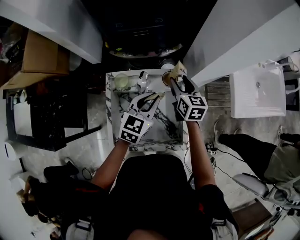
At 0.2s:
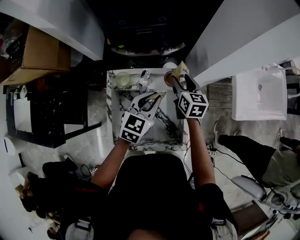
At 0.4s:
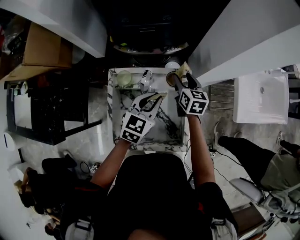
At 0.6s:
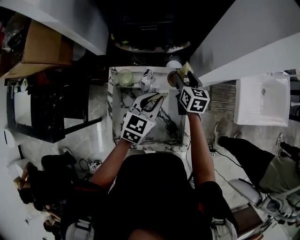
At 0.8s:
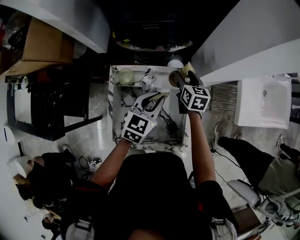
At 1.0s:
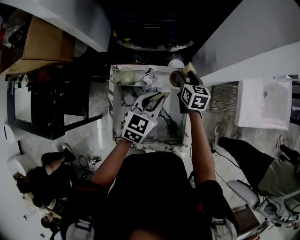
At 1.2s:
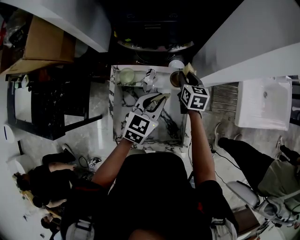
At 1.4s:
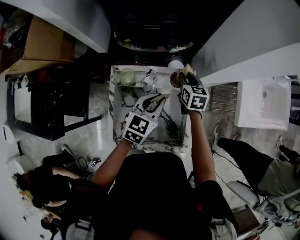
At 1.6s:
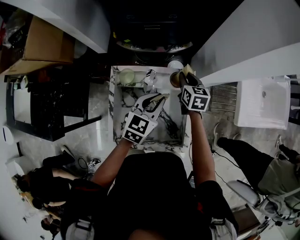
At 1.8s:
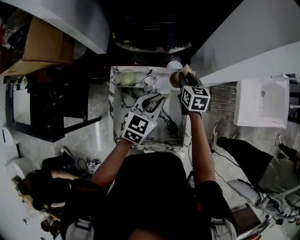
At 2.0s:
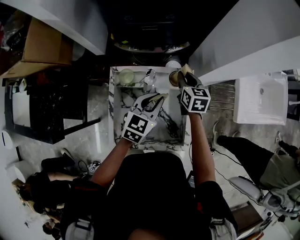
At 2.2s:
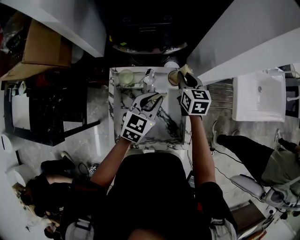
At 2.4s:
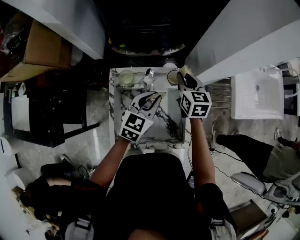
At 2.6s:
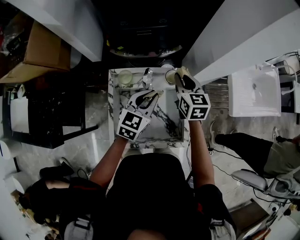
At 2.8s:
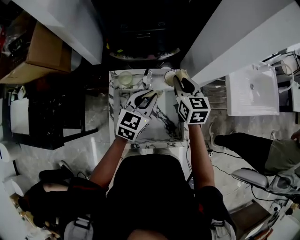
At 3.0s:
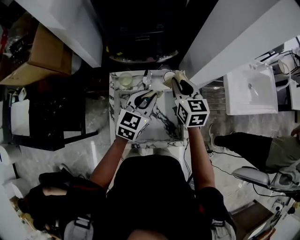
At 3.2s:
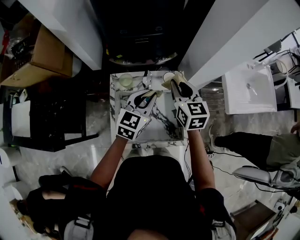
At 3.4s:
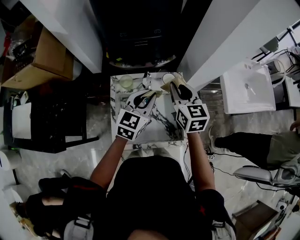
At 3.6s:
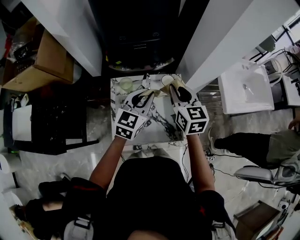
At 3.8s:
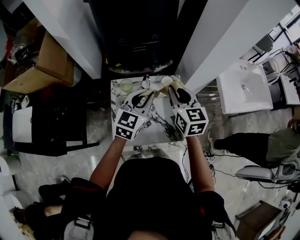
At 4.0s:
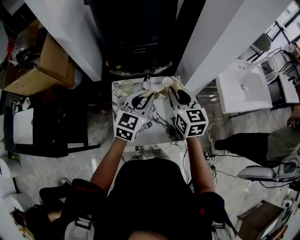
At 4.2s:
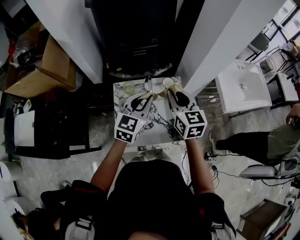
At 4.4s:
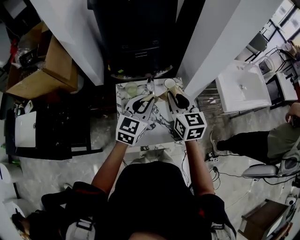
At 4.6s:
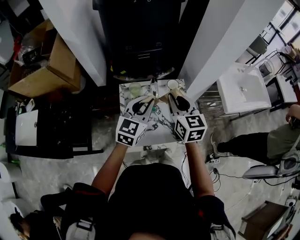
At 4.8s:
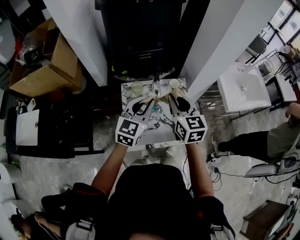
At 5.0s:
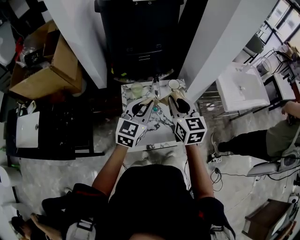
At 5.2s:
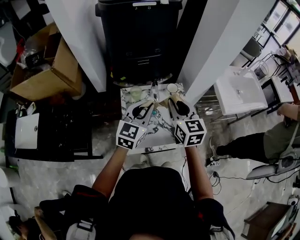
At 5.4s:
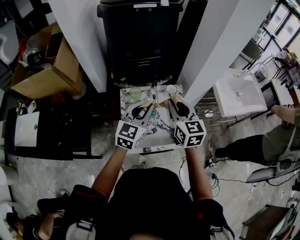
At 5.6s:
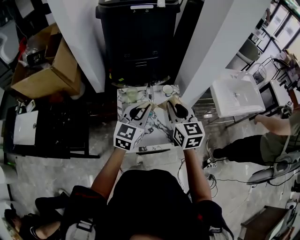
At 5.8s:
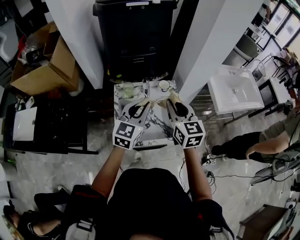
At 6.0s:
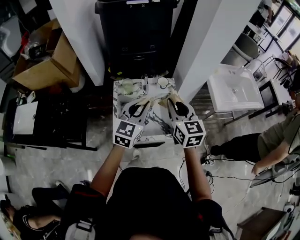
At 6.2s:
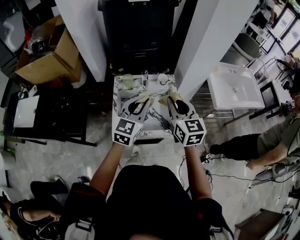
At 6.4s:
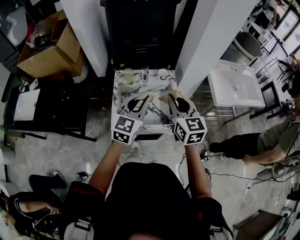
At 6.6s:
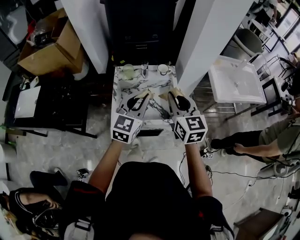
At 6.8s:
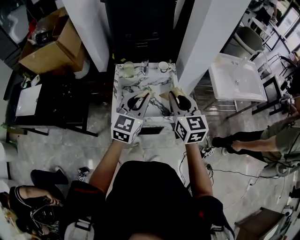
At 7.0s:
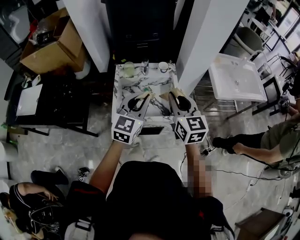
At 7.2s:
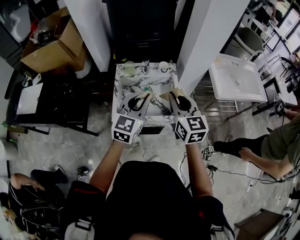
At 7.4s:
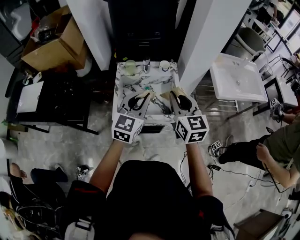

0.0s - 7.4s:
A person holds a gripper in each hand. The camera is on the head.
0.0s - 1.4s: The right gripper travels downward by roughly 5 cm, and closes up.
1.4s - 3.0s: The right gripper is displaced upward and backward by approximately 20 cm, while the left gripper is displaced upward by roughly 5 cm.
3.0s - 4.4s: The right gripper moves backward and upward, about 10 cm. Meanwhile the left gripper shifts some 10 cm upward and backward.
4.4s - 6.0s: The left gripper heads backward, covering some 10 cm. Meanwhile the right gripper moves backward and to the right, some 10 cm.
6.0s - 7.4s: Both grippers travel together backward, some 10 cm.

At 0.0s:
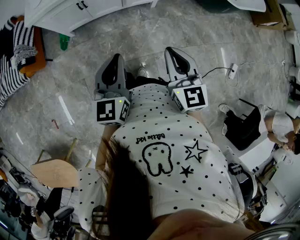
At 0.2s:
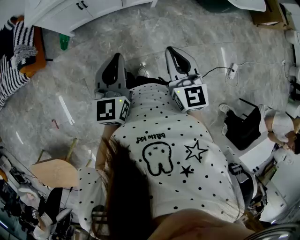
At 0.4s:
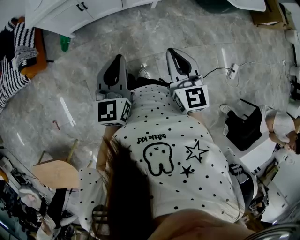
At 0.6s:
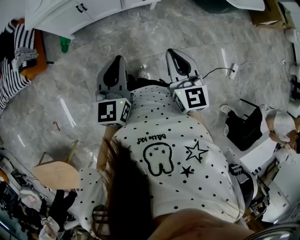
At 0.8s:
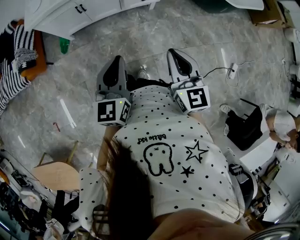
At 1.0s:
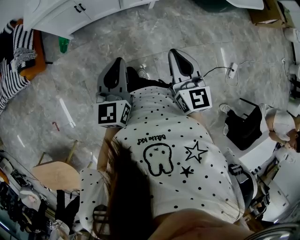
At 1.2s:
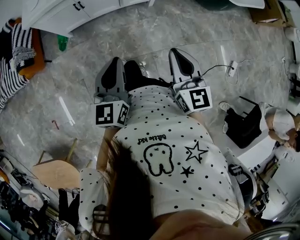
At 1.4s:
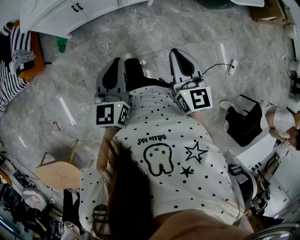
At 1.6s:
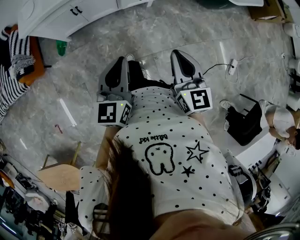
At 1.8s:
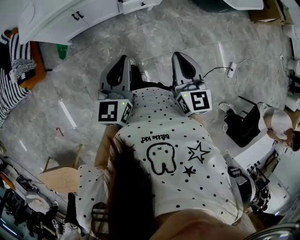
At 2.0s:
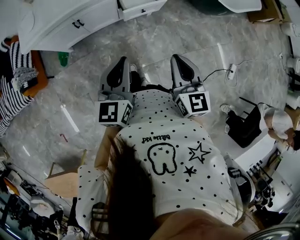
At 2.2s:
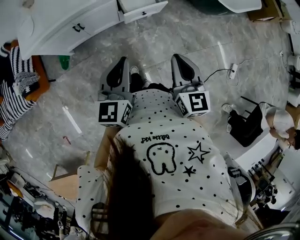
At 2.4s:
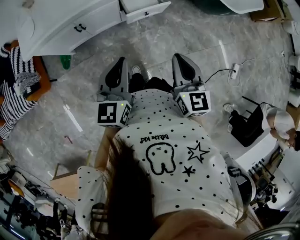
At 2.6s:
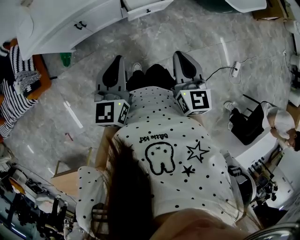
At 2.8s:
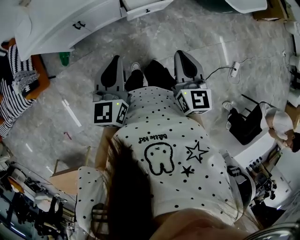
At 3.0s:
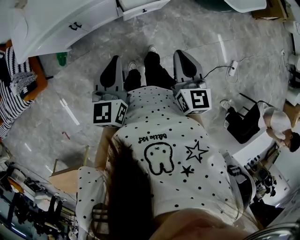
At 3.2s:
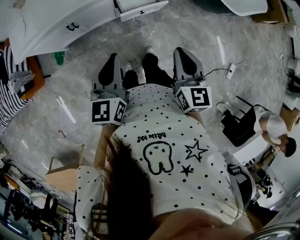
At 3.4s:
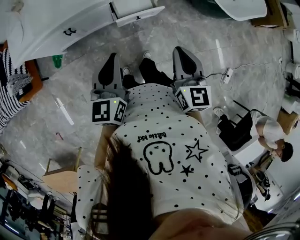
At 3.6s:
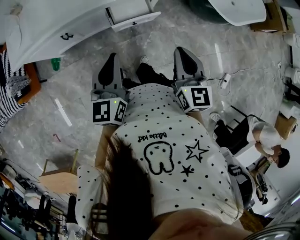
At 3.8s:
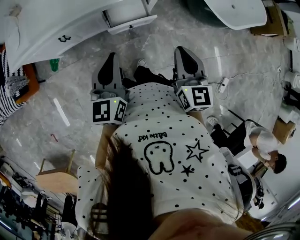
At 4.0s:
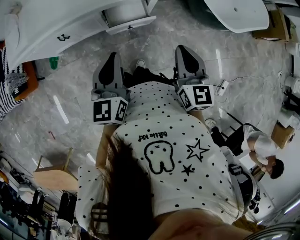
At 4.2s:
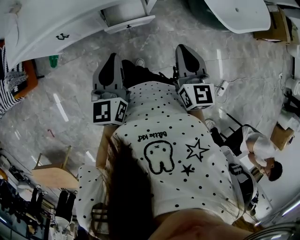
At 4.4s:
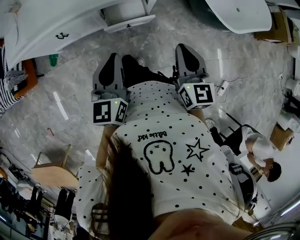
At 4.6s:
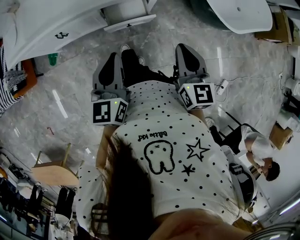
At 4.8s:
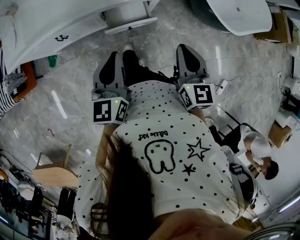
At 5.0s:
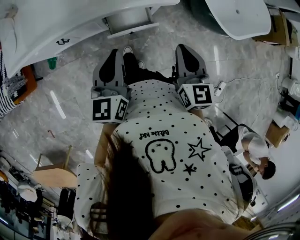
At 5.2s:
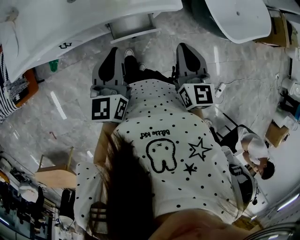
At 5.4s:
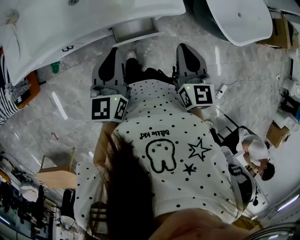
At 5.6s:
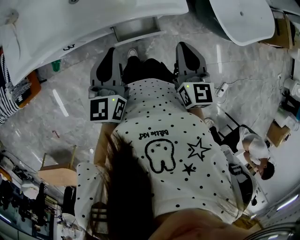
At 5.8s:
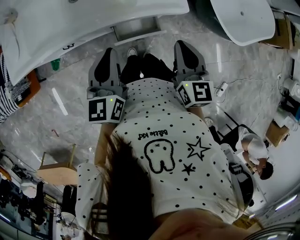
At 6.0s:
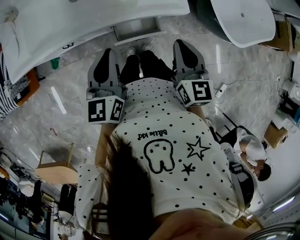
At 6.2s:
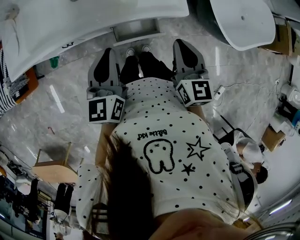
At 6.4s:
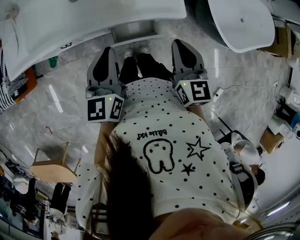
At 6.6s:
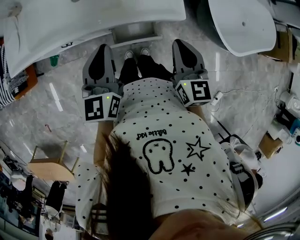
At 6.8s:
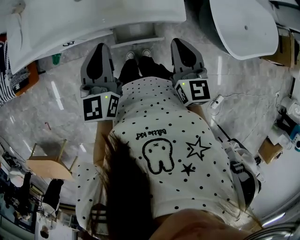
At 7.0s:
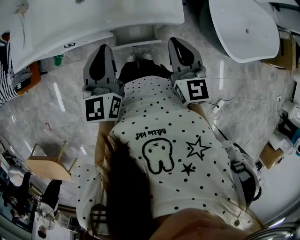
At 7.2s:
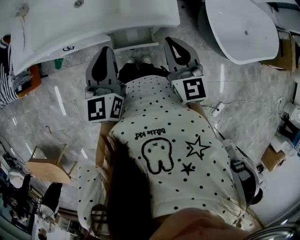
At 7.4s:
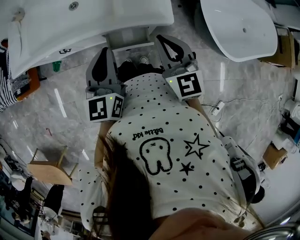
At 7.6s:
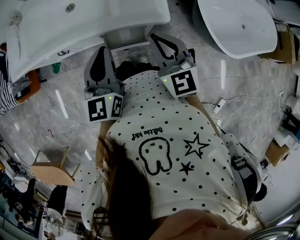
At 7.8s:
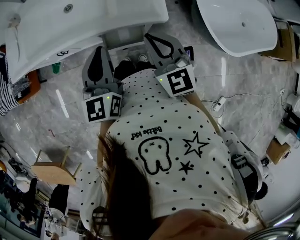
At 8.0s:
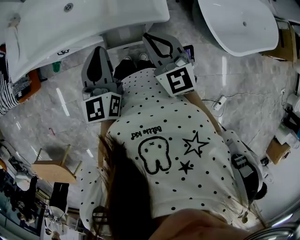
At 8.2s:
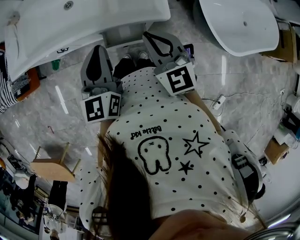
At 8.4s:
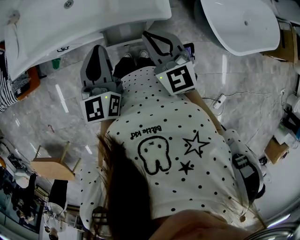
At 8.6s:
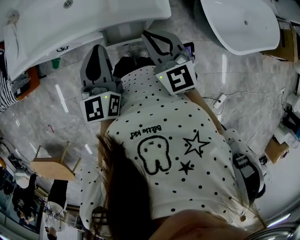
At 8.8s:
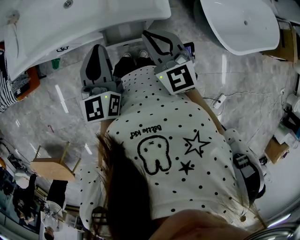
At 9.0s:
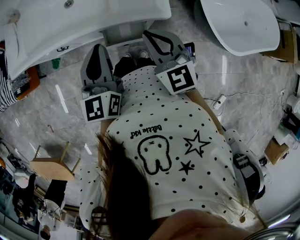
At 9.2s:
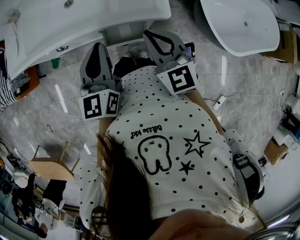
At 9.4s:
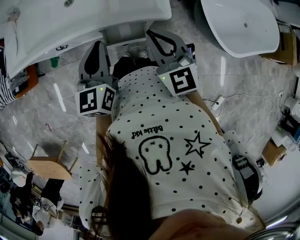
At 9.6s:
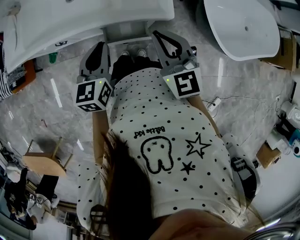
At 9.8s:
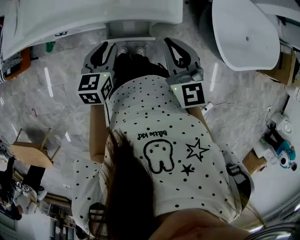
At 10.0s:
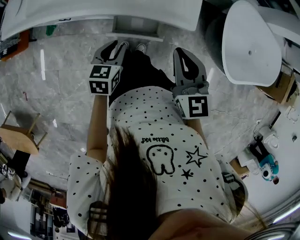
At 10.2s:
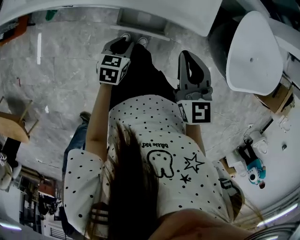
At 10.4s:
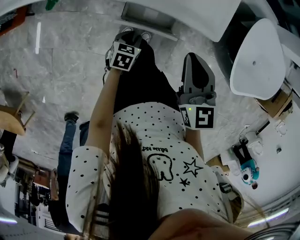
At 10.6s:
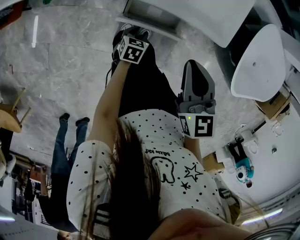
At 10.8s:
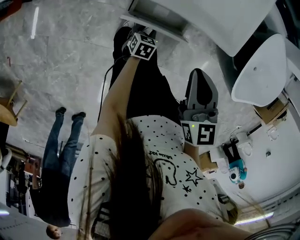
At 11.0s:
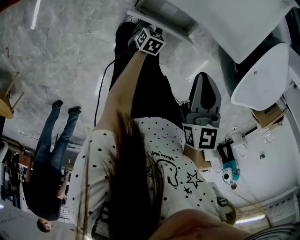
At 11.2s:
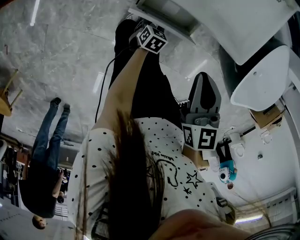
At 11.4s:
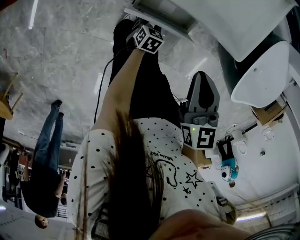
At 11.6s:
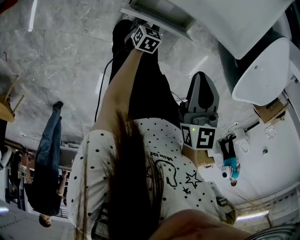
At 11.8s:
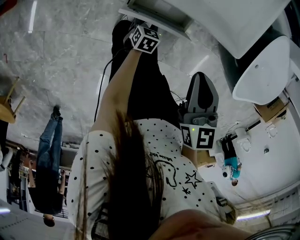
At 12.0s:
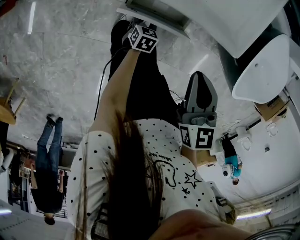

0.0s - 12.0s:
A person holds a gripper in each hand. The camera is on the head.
0.0s - 1.6s: There are only small adjustments of the grippers.
1.6s - 3.0s: Both grippers travel together forward, approximately 15 cm.
3.0s - 4.4s: The two grippers go approximately 20 cm to the right and forward.
4.4s - 6.0s: The grippers both shift forward and to the left by roughly 15 cm.
6.0s - 7.6s: The right gripper changes its angle by about 30 degrees. Meanwhile the left gripper shifts about 10 cm to the right.
7.6s - 9.0s: The grippers make only small movements.
9.0s - 10.4s: The right gripper goes roughly 10 cm downward; the left gripper shifts about 40 cm downward, angles its fingers downward, by roughly 50 degrees, and opens up.
10.4s - 12.0s: The left gripper shifts about 15 cm downward. Meanwhile the right gripper goes about 5 cm downward.

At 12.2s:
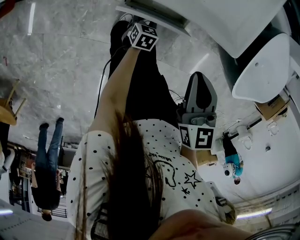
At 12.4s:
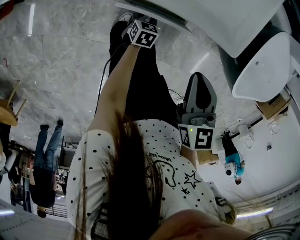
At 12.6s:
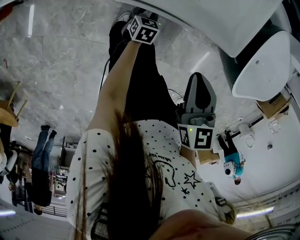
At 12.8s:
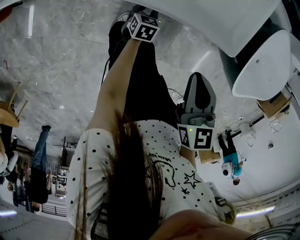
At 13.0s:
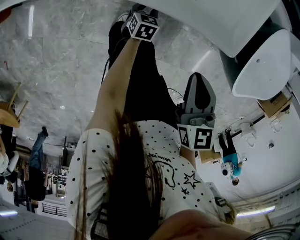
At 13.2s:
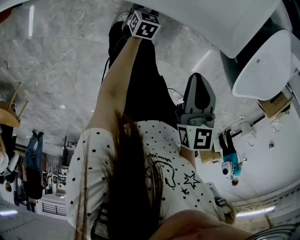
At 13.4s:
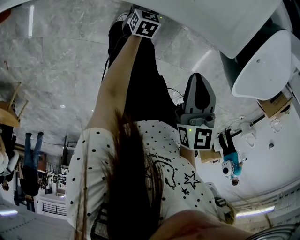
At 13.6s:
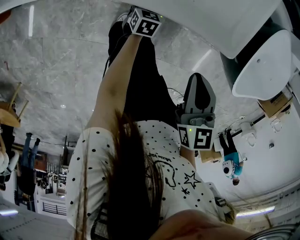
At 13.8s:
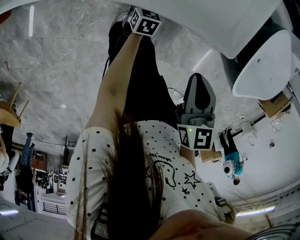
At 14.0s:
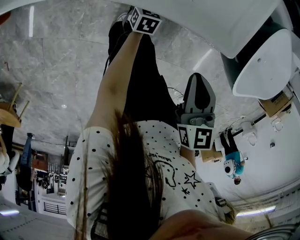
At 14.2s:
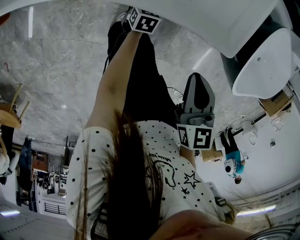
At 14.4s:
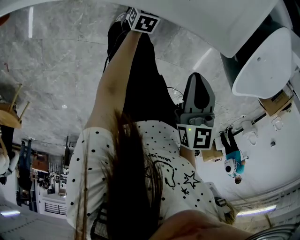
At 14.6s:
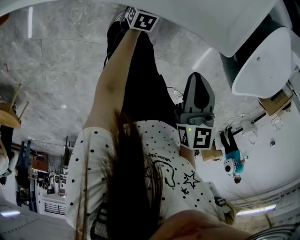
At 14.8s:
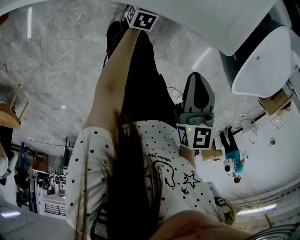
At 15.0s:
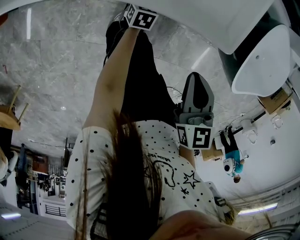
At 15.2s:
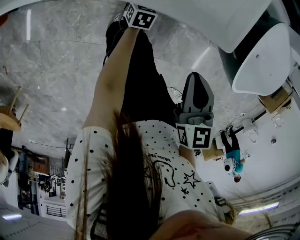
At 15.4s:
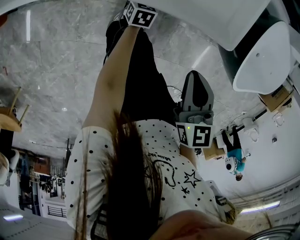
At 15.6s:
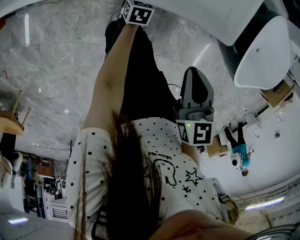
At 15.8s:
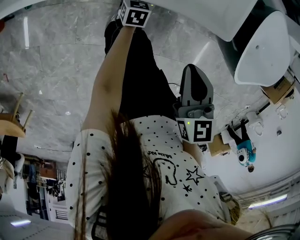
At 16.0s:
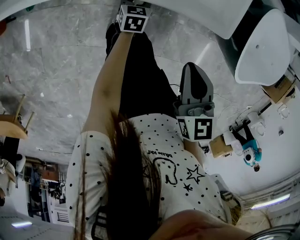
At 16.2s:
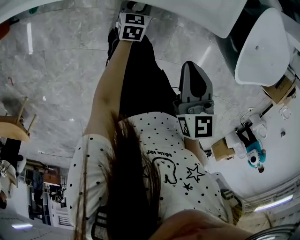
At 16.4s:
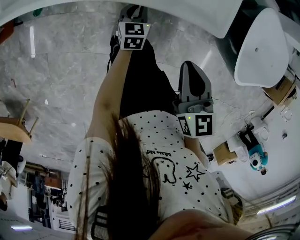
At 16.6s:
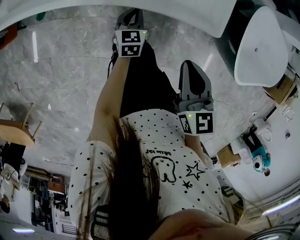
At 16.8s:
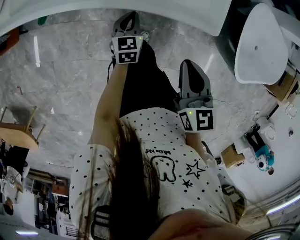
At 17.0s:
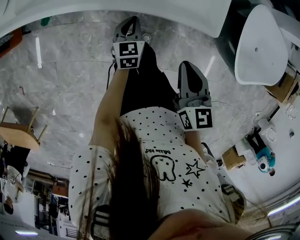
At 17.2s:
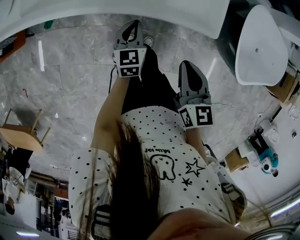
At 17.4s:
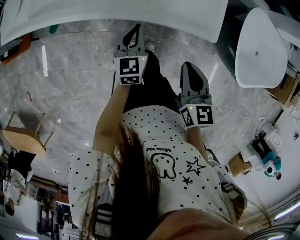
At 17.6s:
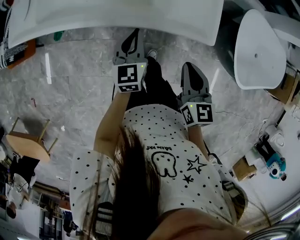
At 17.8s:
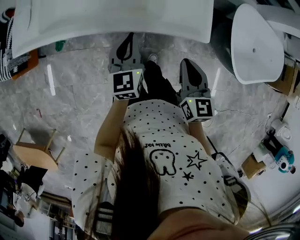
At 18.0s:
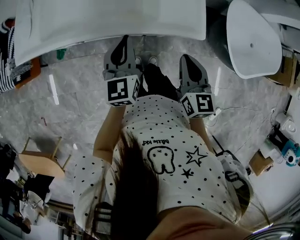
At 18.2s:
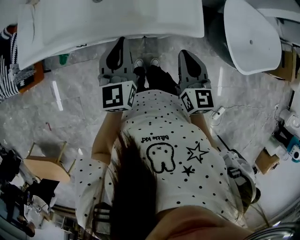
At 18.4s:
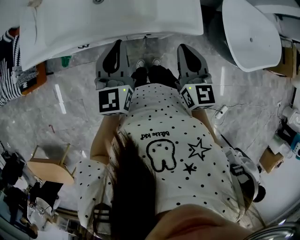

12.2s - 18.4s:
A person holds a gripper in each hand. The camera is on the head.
12.2s - 13.8s: The left gripper travels forward by approximately 10 cm.
13.8s - 15.4s: The grippers move only a little.
15.4s - 16.8s: The right gripper shifts approximately 5 cm upward. Meanwhile the left gripper goes roughly 20 cm upward and to the left, and closes up.
16.8s - 18.4s: The right gripper travels upward and to the left by roughly 15 cm, and rotates some 20 degrees. The left gripper shifts approximately 35 cm upward, and changes its angle by approximately 30 degrees.
